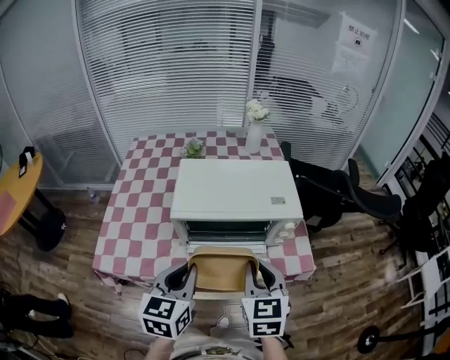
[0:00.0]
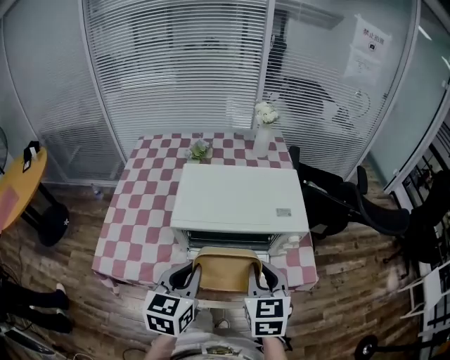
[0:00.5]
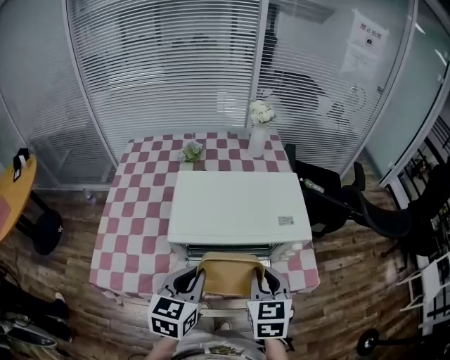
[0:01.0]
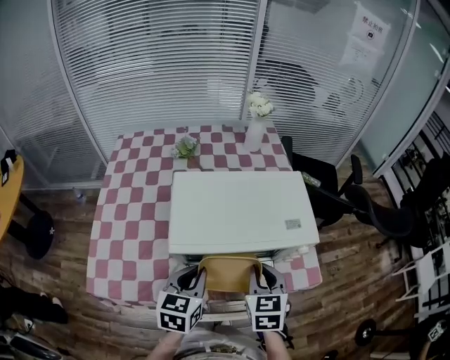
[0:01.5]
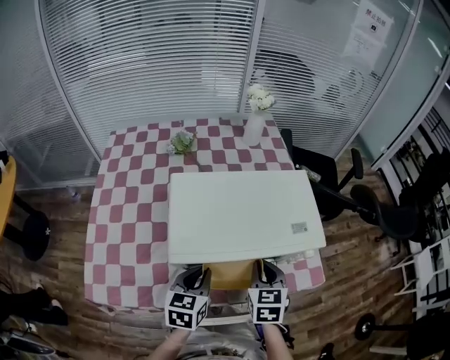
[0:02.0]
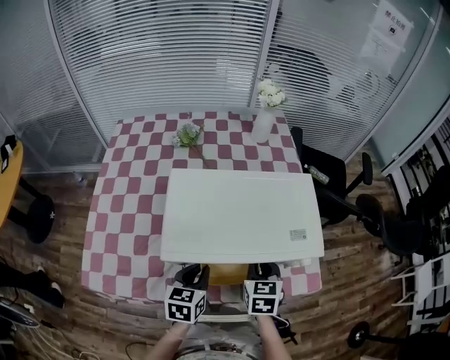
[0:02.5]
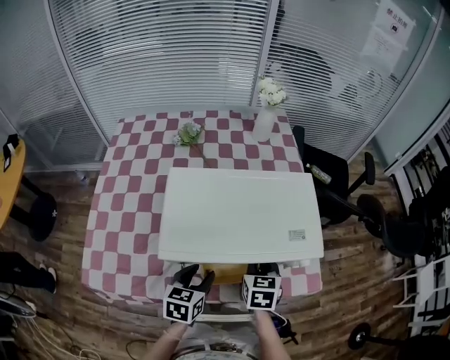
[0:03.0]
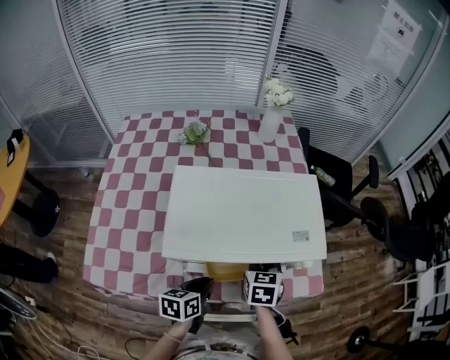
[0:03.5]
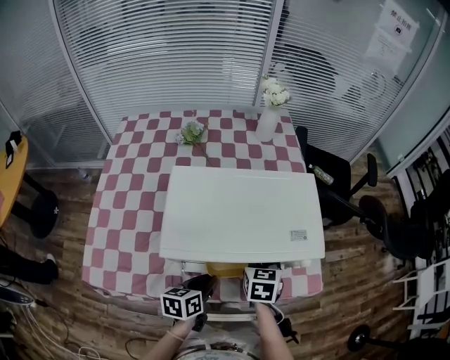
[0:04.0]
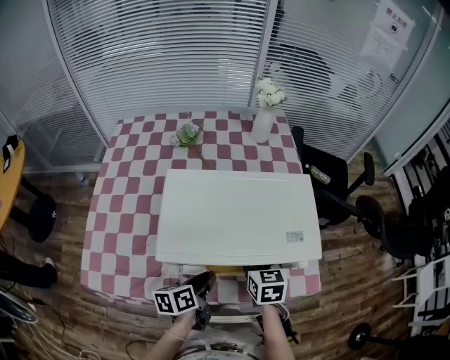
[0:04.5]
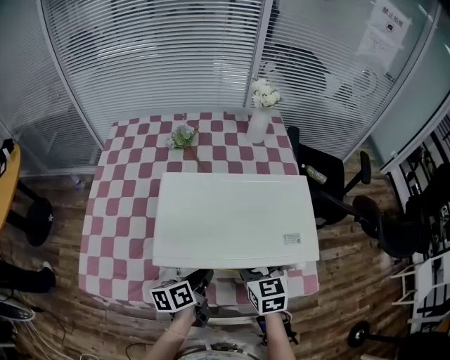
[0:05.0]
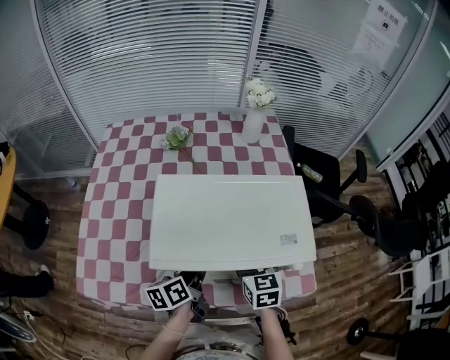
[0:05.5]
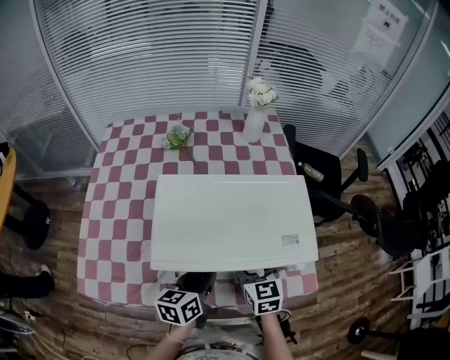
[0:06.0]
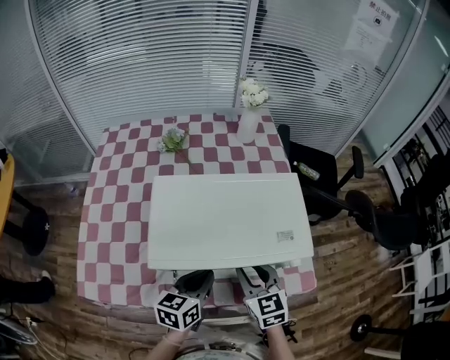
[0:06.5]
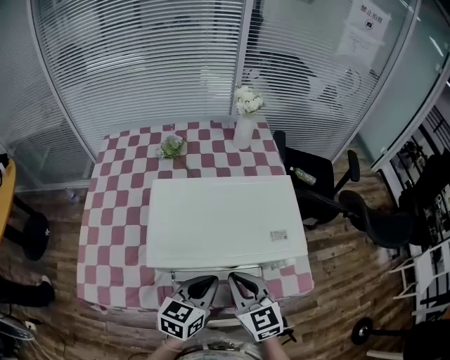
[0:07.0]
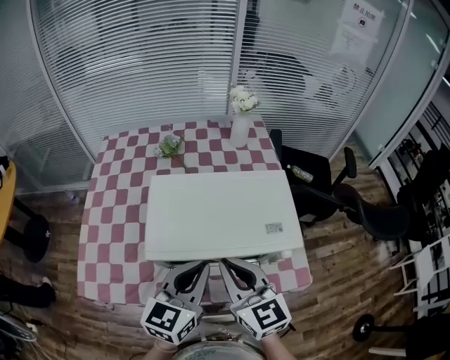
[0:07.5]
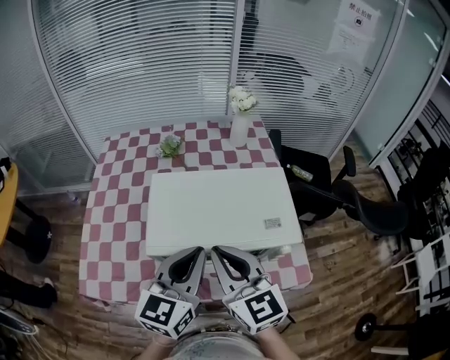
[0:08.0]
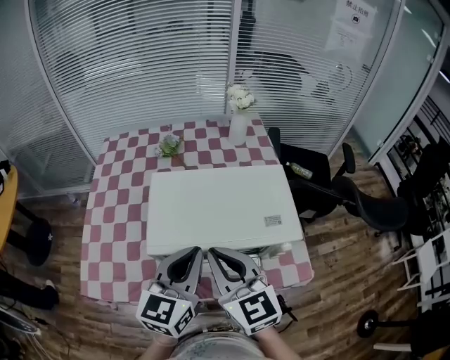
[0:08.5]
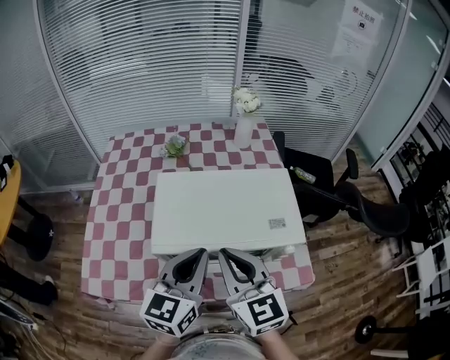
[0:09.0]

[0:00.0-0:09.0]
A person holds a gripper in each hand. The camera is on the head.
0:00.0 to 0:02.0: The right gripper moves forward and downward, some 20 cm, while the left gripper goes about 20 cm downward and forward.
0:02.0 to 0:04.5: The left gripper shifts by roughly 5 cm, rotates approximately 40 degrees, and opens, then closes again, while the right gripper shifts about 5 cm forward, and opens up.
0:04.5 to 0:07.0: The right gripper goes roughly 10 cm backward and upward, turns by roughly 20 degrees, and closes its fingers, while the left gripper heads upward, covering about 10 cm, and rolls clockwise, seen from behind, by roughly 40 degrees.
0:07.0 to 0:09.0: The grippers both shift upward by roughly 15 cm. The left gripper changes its angle by roughly 20 degrees.

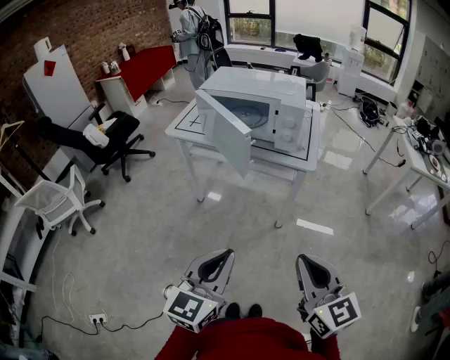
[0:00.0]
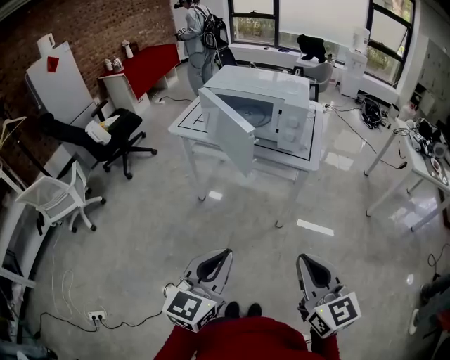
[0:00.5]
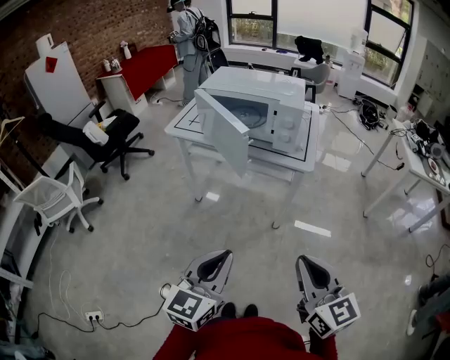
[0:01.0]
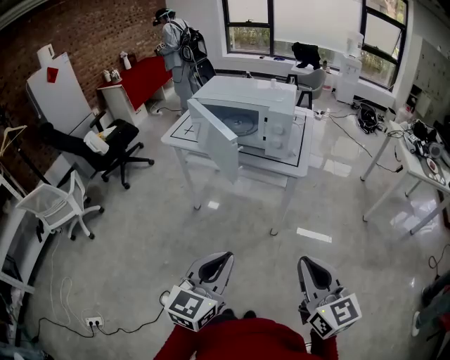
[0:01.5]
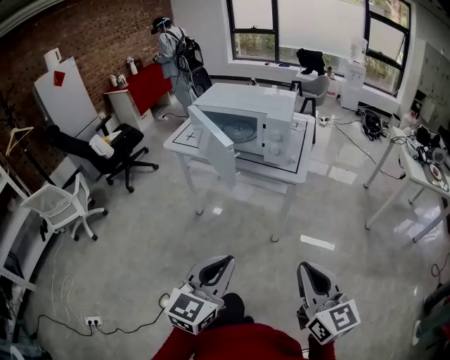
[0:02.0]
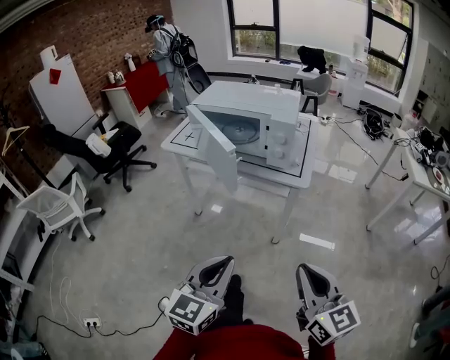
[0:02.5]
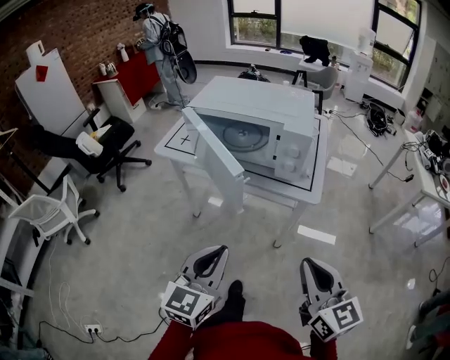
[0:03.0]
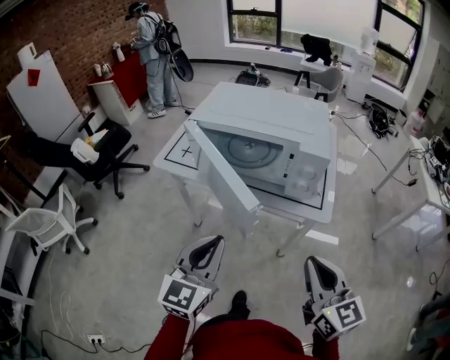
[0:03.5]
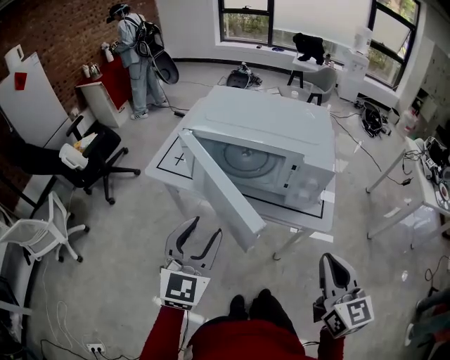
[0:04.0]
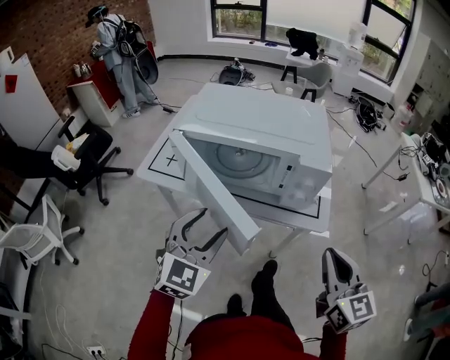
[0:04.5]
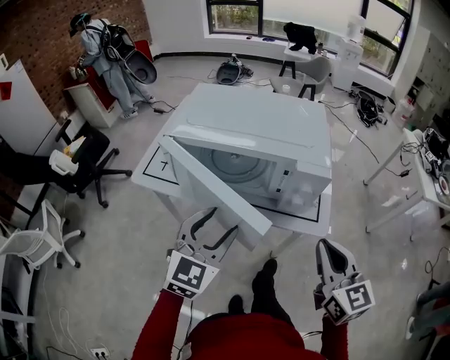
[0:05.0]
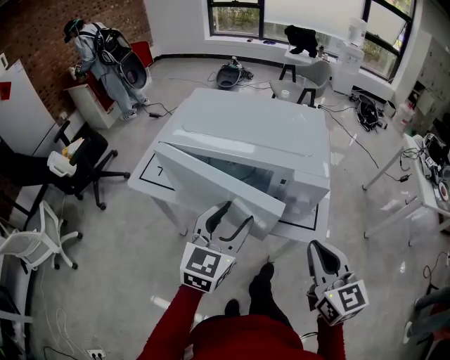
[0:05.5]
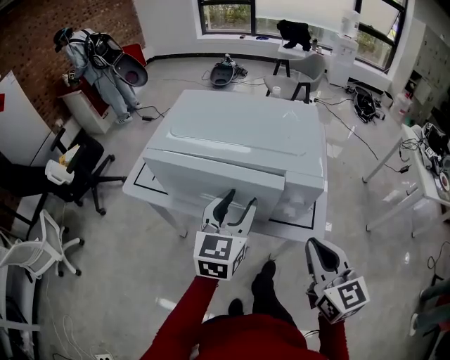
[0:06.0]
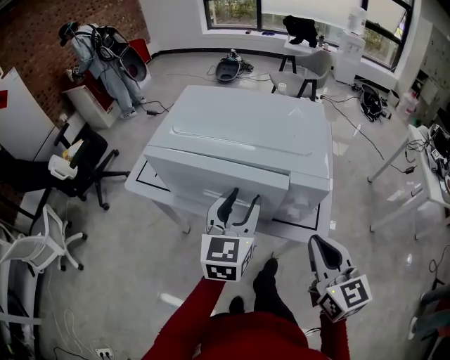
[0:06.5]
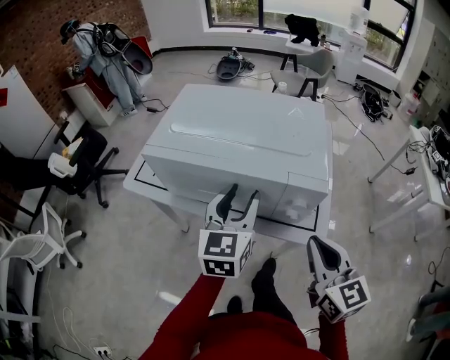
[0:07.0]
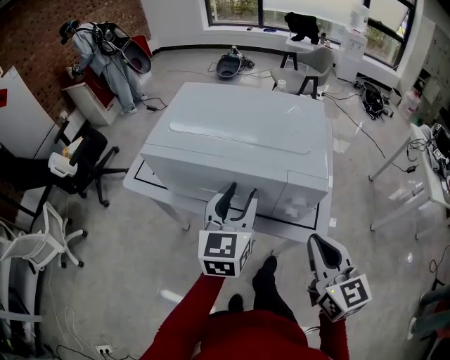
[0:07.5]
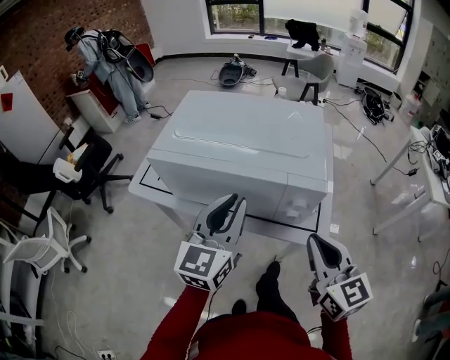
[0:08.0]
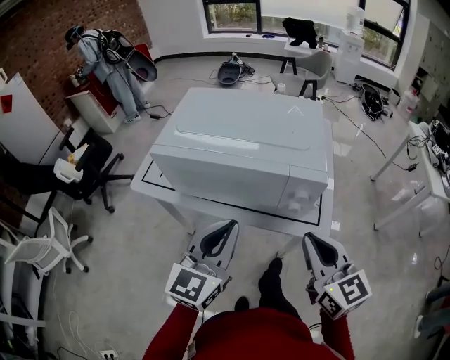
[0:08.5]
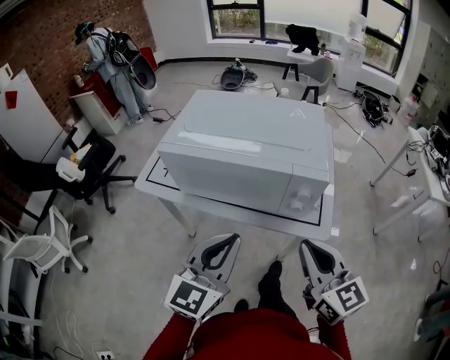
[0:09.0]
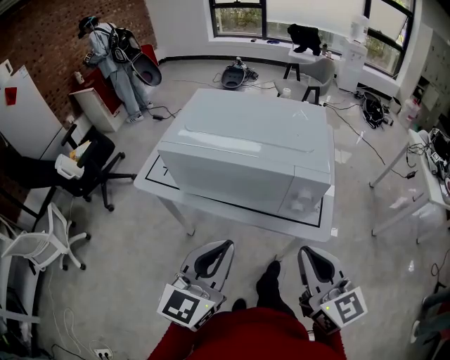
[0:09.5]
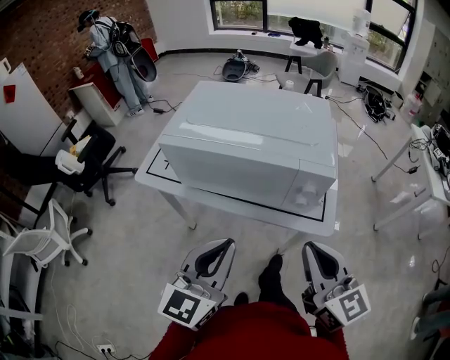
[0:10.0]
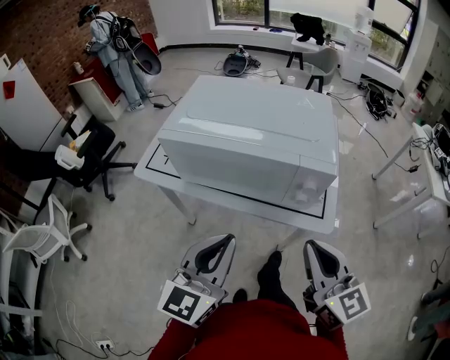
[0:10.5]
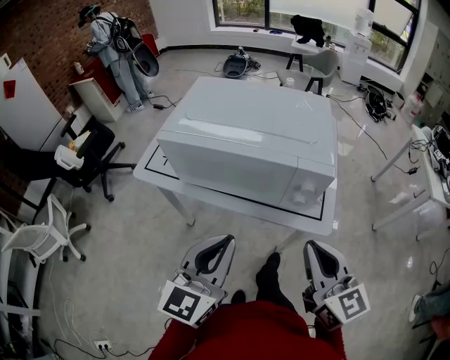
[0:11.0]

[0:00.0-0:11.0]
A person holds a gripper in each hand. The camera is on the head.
0:00.0 to 0:02.0: The two grippers go roughly 5 cm to the right.
0:02.0 to 0:03.5: Both grippers travel together forward, about 20 cm.
0:03.5 to 0:05.5: The grippers both shift forward by some 15 cm. The left gripper opens its fingers.
0:05.5 to 0:07.5: The left gripper moves forward, some 5 cm.
0:07.5 to 0:09.0: The left gripper shifts approximately 15 cm backward, and closes its fingers; the right gripper ends up some 5 cm from where it was.
0:09.0 to 0:11.0: The grippers make only small movements.

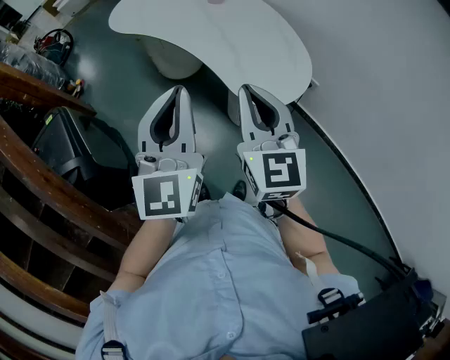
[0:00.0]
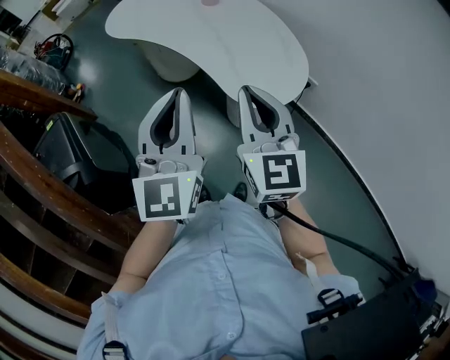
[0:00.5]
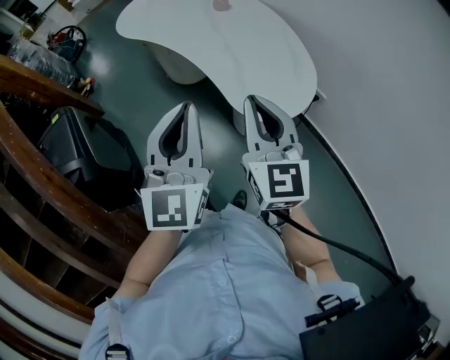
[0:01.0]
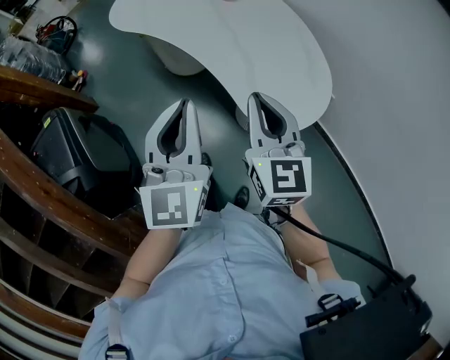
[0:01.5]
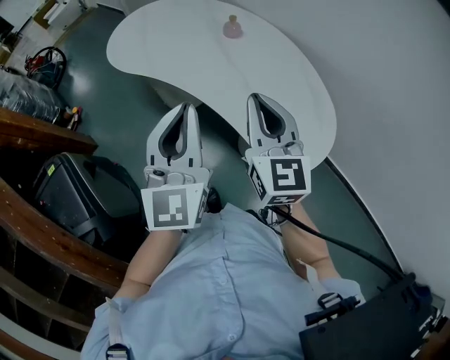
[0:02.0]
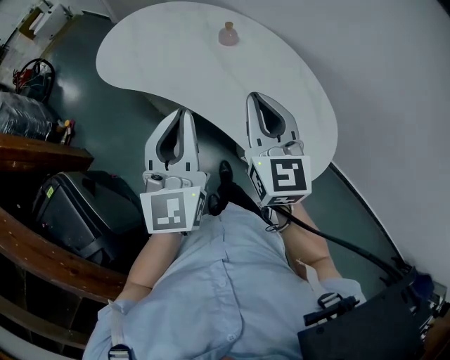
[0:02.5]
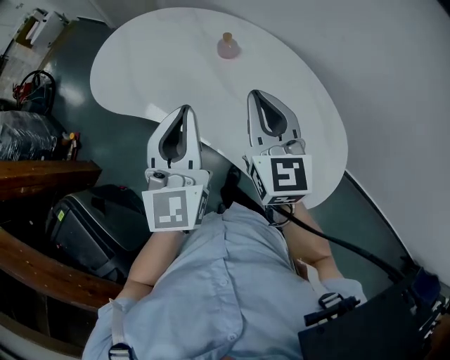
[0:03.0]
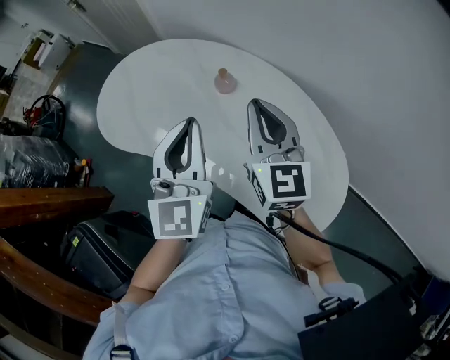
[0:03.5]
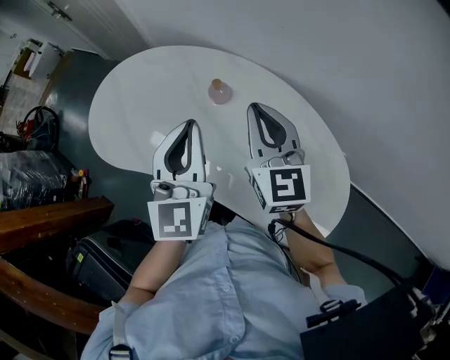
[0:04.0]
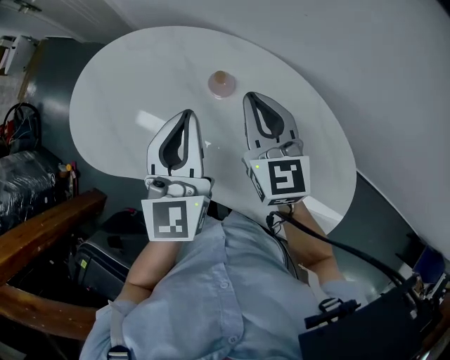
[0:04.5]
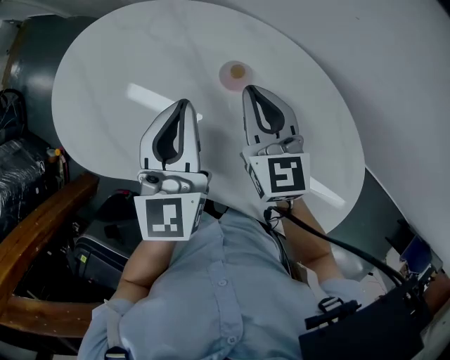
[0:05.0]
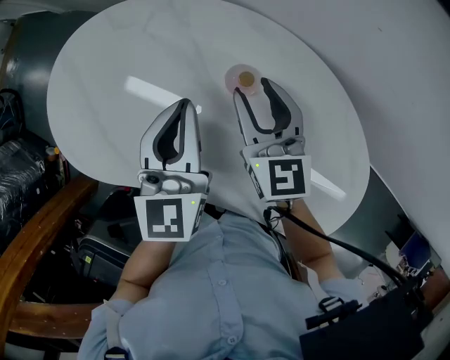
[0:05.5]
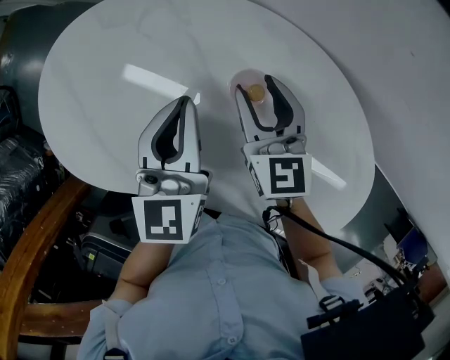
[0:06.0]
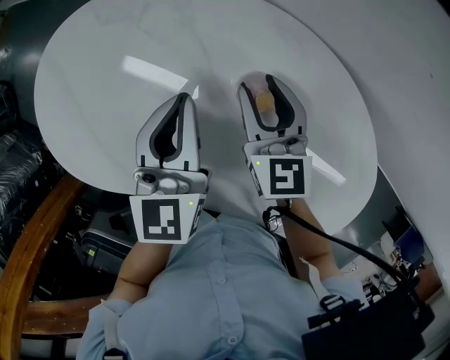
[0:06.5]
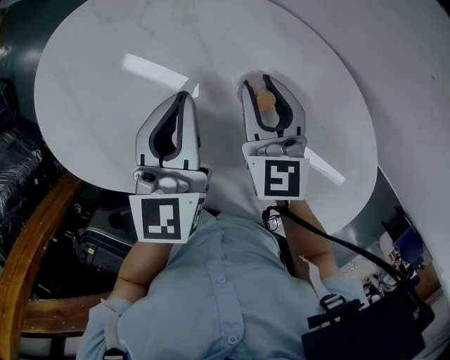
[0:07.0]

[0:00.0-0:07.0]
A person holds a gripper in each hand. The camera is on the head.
0:00.0 to 0:02.0: The two grippers go roughly 15 cm forward.
0:02.0 to 0:03.5: The two grippers go roughly 15 cm forward.
0:03.5 to 0:05.0: The right gripper moves downward and forward, about 10 cm, while the left gripper moves forward and downward, approximately 10 cm.
0:05.0 to 0:07.0: The right gripper opens up.
